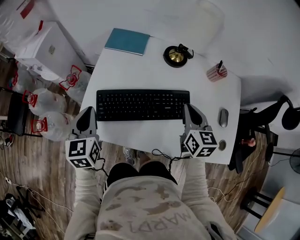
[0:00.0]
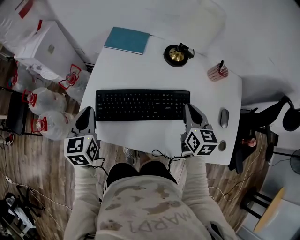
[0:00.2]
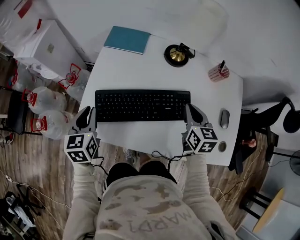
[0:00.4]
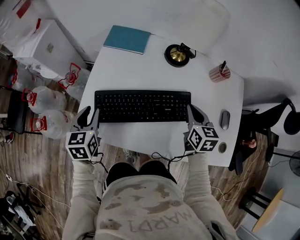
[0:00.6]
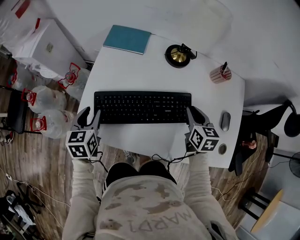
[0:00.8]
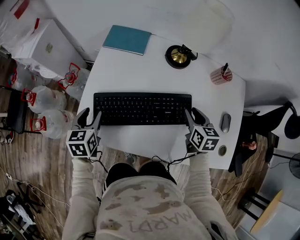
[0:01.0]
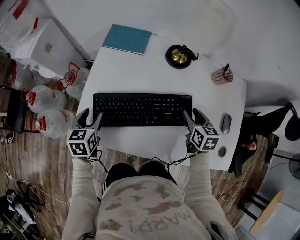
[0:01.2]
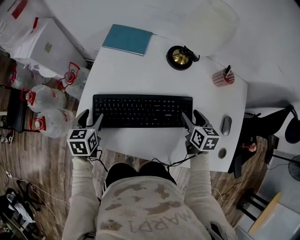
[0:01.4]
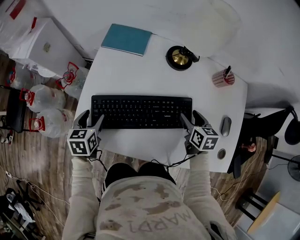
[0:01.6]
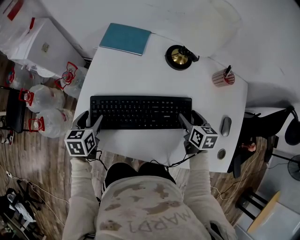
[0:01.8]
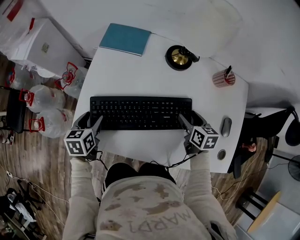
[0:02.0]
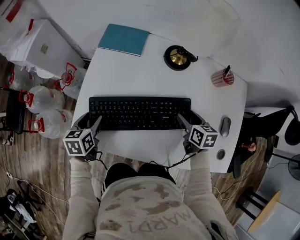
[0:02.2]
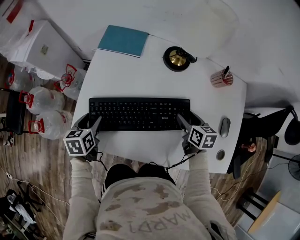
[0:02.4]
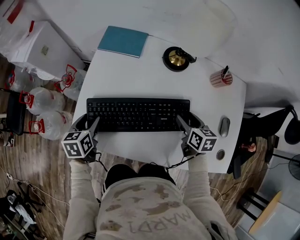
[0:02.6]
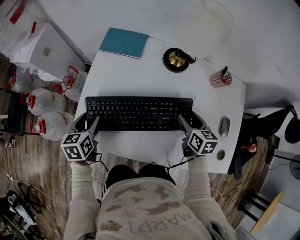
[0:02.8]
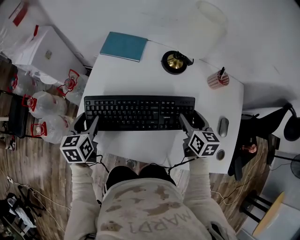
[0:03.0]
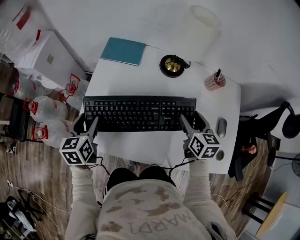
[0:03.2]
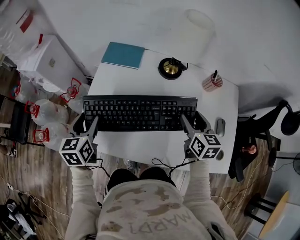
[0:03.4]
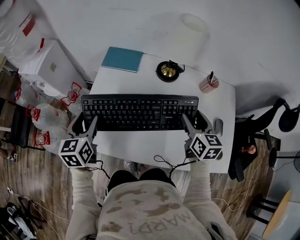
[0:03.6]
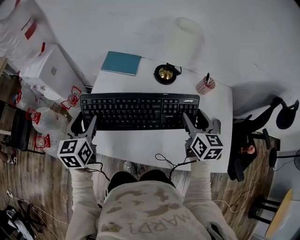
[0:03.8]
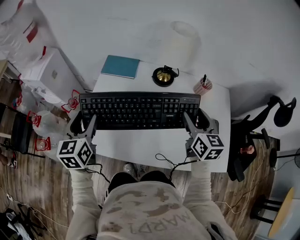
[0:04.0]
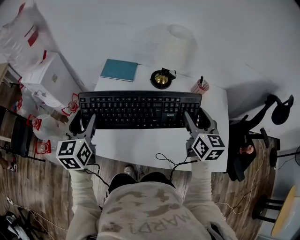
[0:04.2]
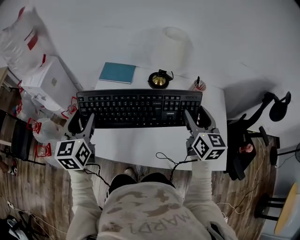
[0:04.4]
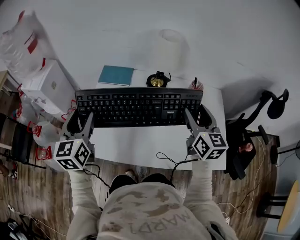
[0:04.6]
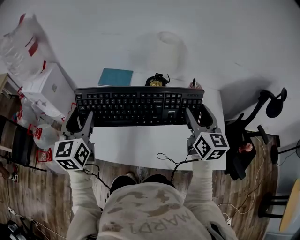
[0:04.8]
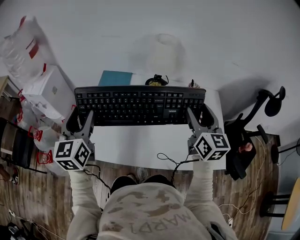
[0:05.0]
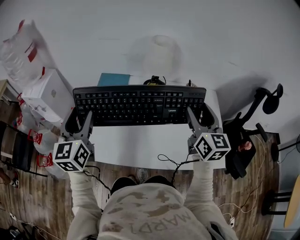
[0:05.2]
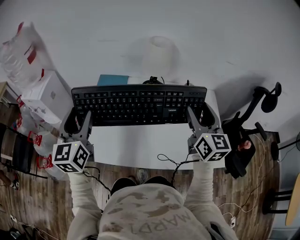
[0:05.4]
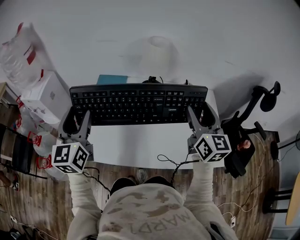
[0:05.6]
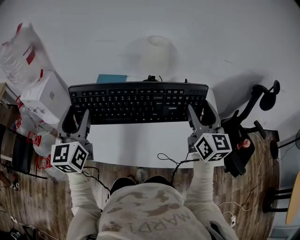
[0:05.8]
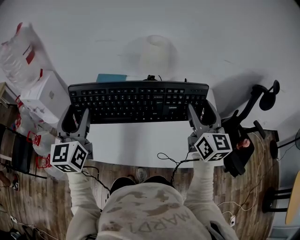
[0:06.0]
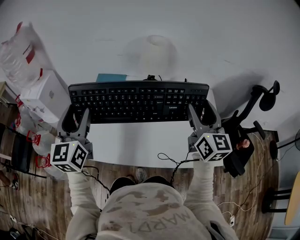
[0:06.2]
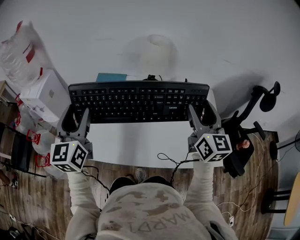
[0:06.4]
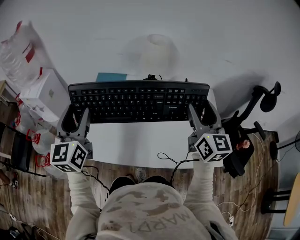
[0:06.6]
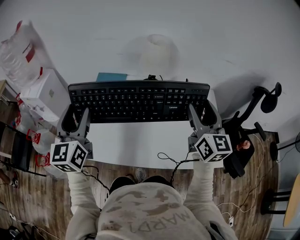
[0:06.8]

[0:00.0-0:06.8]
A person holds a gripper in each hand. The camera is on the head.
0:00.0 to 0:01.4: The left gripper travels downward by about 15 cm, swivels approximately 20 degrees, and opens. The right gripper heads downward and to the right, covering roughly 15 cm, turns by about 20 degrees, and opens its fingers.
0:01.4 to 0:02.8: The grippers make only small movements.
0:02.8 to 0:04.0: The two grippers go some 20 cm upward. The left gripper changes its angle by roughly 20 degrees. The right gripper rotates roughly 20 degrees.
0:04.0 to 0:05.4: The right gripper shifts roughly 15 cm upward and backward; the left gripper moves upward, some 15 cm.
0:05.4 to 0:06.8: The grippers stay close to where they were, moving slightly.

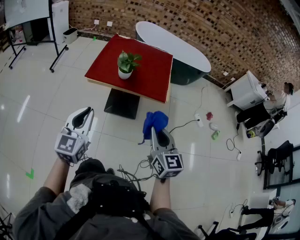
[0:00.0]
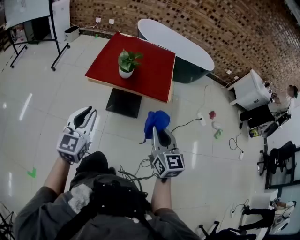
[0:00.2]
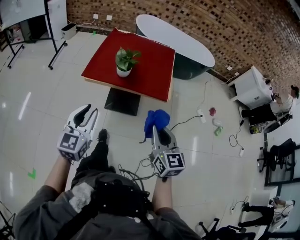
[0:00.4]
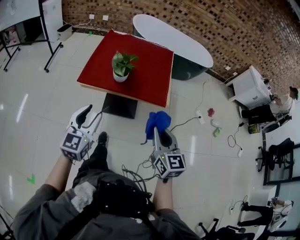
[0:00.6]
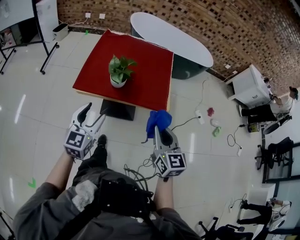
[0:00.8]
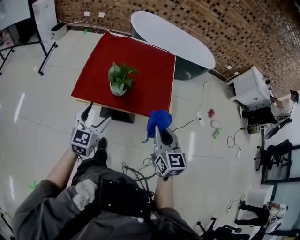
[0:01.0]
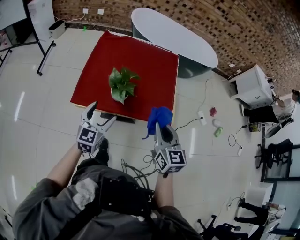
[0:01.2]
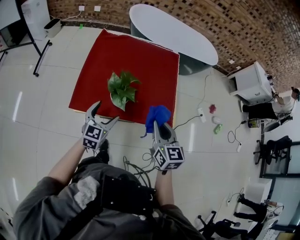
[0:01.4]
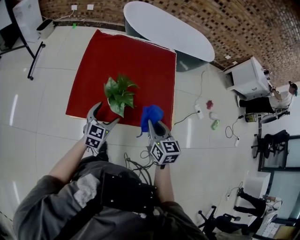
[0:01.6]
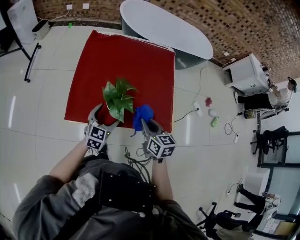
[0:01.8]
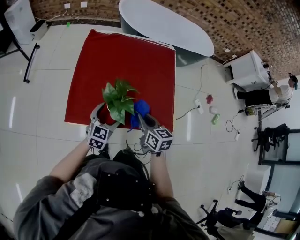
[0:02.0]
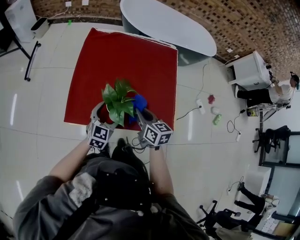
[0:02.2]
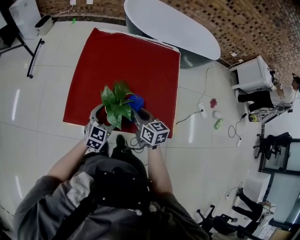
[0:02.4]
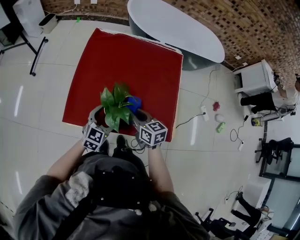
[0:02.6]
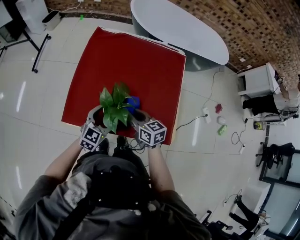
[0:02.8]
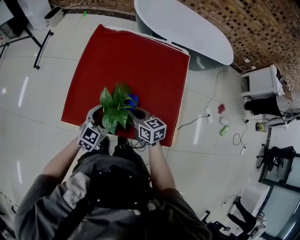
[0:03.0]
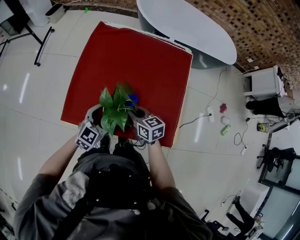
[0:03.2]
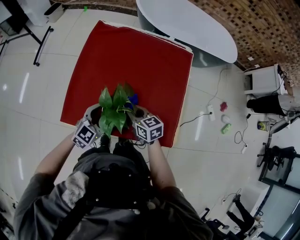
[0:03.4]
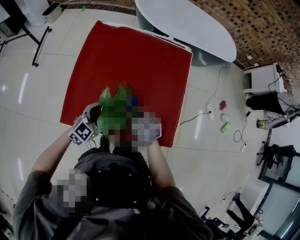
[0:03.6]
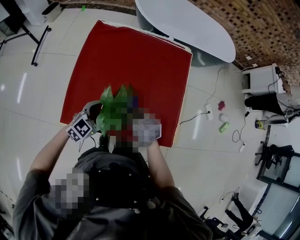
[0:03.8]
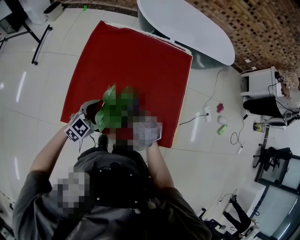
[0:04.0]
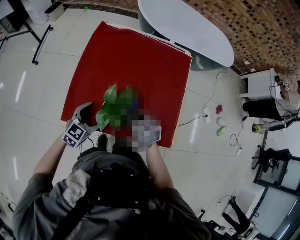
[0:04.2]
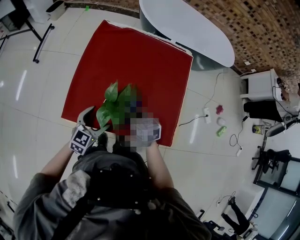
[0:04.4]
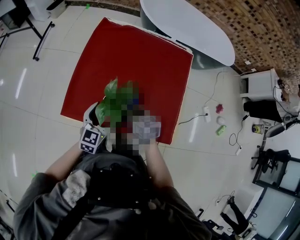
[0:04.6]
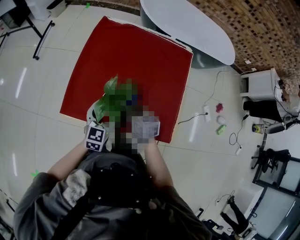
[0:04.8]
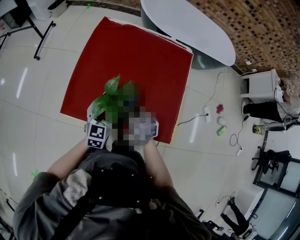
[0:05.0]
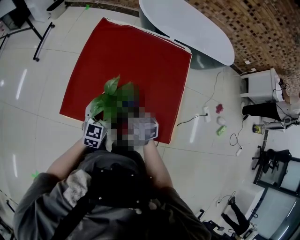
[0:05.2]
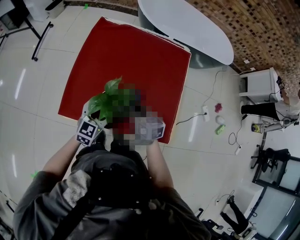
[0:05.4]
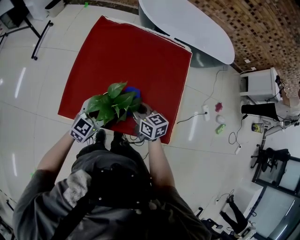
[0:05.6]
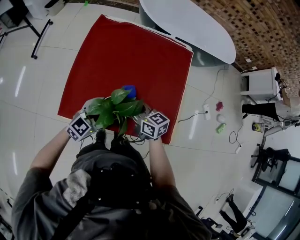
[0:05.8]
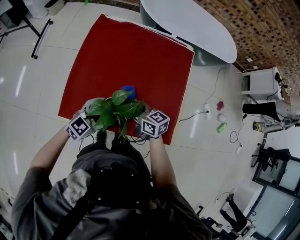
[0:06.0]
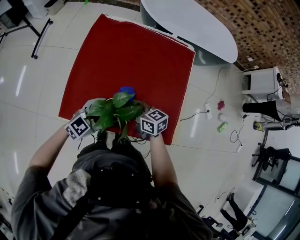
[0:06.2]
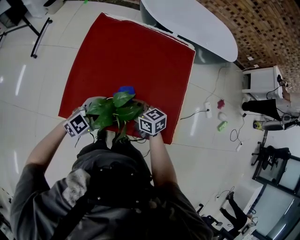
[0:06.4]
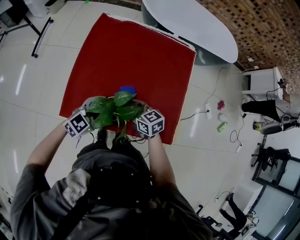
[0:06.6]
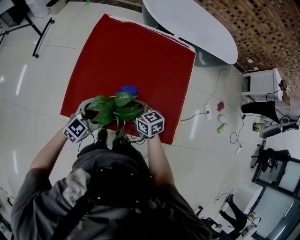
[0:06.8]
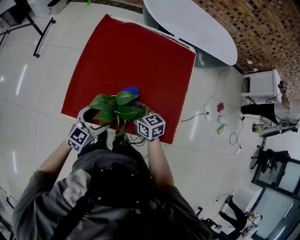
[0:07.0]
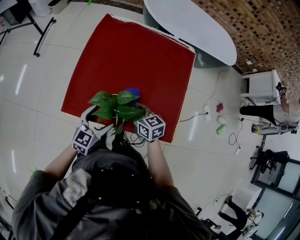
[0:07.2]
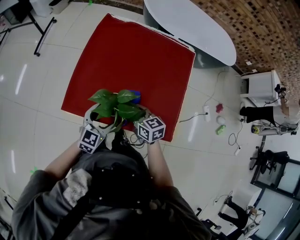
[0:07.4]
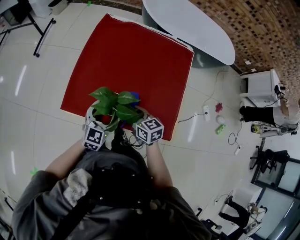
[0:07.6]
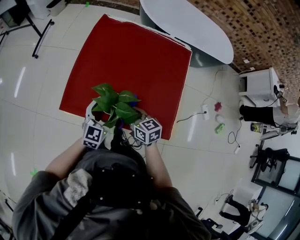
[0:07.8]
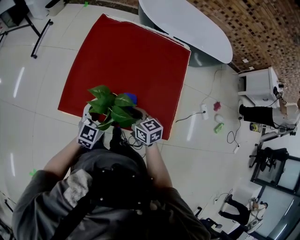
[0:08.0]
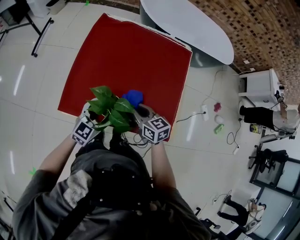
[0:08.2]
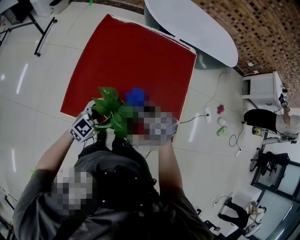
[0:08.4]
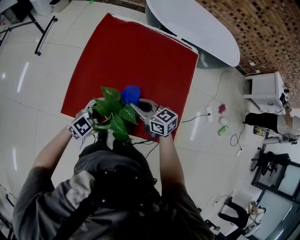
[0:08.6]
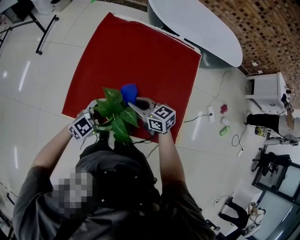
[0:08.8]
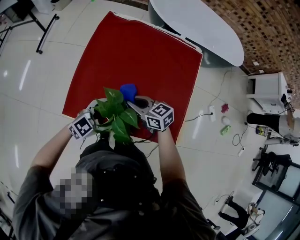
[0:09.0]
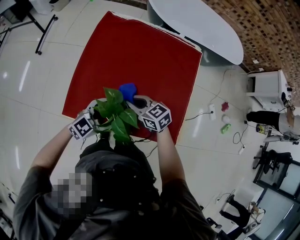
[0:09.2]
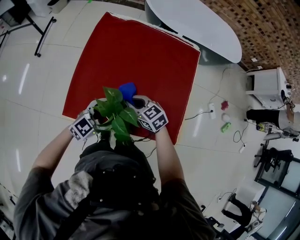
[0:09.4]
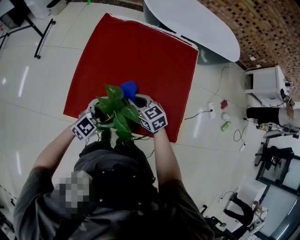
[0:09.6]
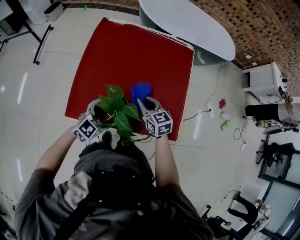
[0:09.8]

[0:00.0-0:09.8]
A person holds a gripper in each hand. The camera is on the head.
0:00.0 to 0:01.4: The pair of grippers is taken forward, approximately 50 cm. The left gripper opens its fingers.
0:01.4 to 0:02.8: The right gripper heads forward, downward and to the left, covering approximately 25 cm, and swivels about 30 degrees, while the left gripper travels forward and downward by about 15 cm.
0:02.8 to 0:04.2: The left gripper is displaced to the left by roughly 5 cm, while the right gripper moves roughly 5 cm.
0:04.2 to 0:05.6: The left gripper shifts by approximately 5 cm.
0:05.6 to 0:07.0: The left gripper moves some 5 cm.
0:07.0 to 0:08.4: The right gripper ends up roughly 5 cm from where it was.

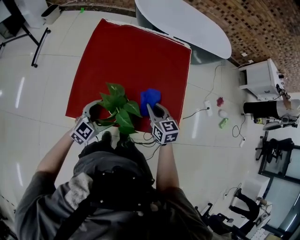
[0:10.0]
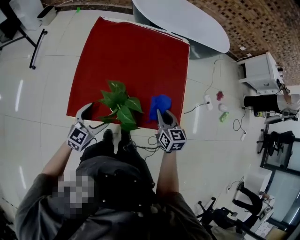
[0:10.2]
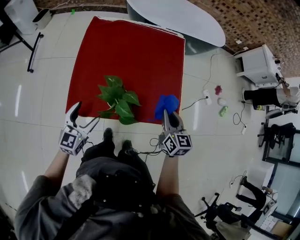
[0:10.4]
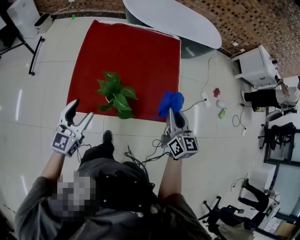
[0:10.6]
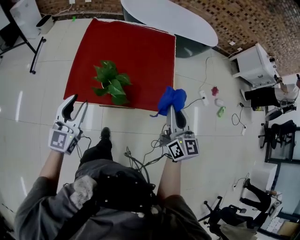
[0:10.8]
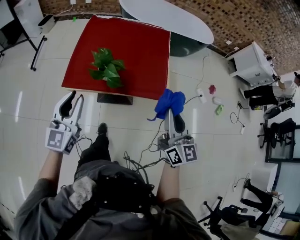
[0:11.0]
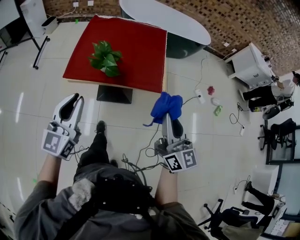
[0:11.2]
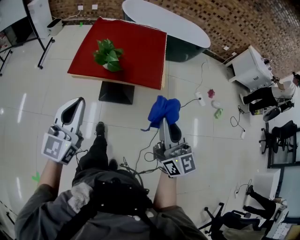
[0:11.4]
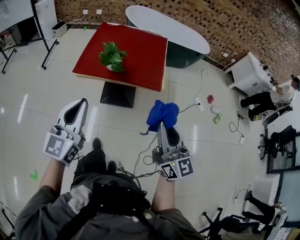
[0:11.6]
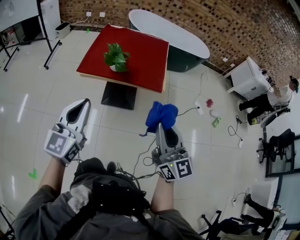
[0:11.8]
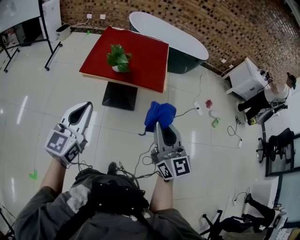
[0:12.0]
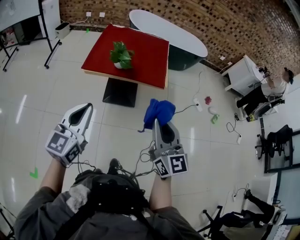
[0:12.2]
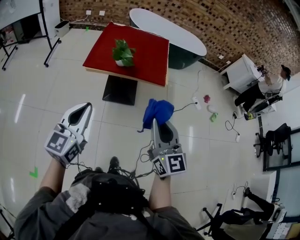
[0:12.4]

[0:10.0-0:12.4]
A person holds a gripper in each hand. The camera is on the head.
0:10.0 to 0:11.2: The right gripper goes some 50 cm backward, upward and to the right, and angles its fingers upward, by some 40 degrees, while the left gripper is displaced backward and upward by some 40 cm, turns by about 40 degrees, and closes its fingers.
0:11.2 to 0:12.4: The right gripper goes approximately 25 cm backward and to the left. The left gripper moves backward, approximately 25 cm.

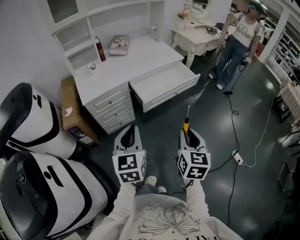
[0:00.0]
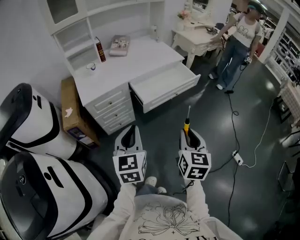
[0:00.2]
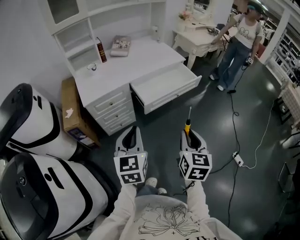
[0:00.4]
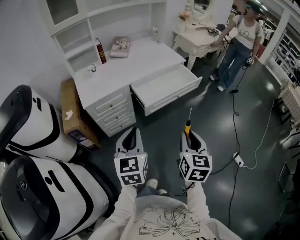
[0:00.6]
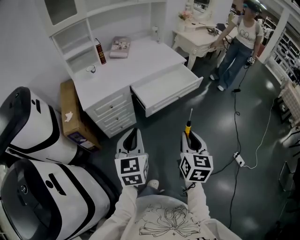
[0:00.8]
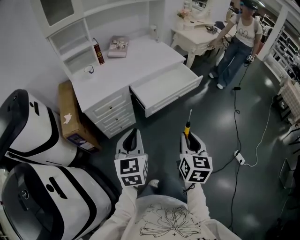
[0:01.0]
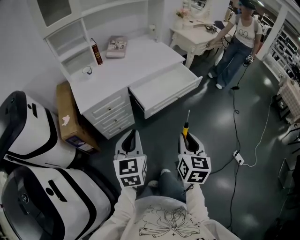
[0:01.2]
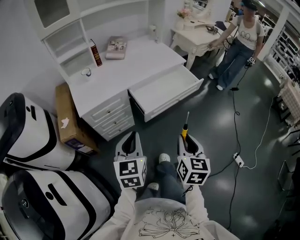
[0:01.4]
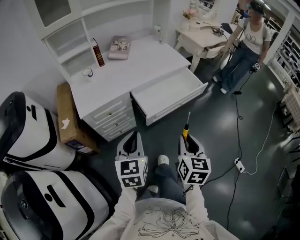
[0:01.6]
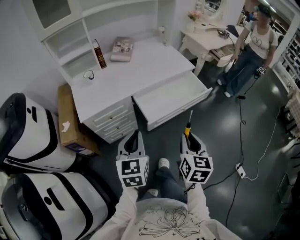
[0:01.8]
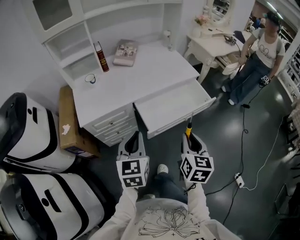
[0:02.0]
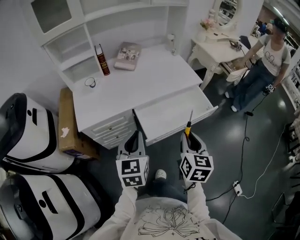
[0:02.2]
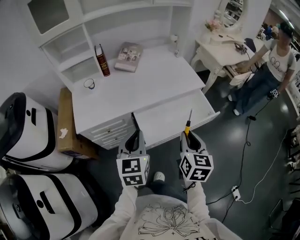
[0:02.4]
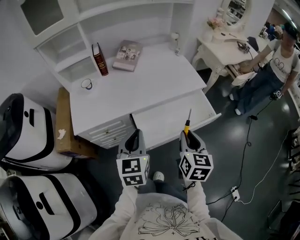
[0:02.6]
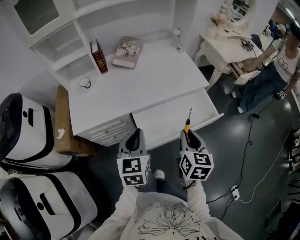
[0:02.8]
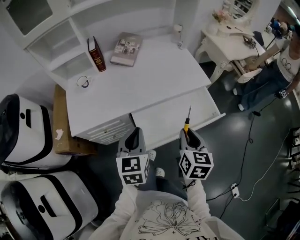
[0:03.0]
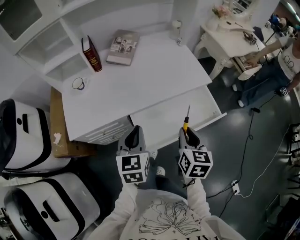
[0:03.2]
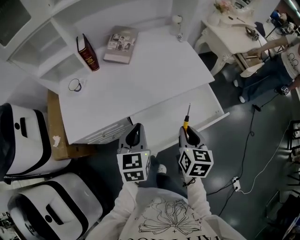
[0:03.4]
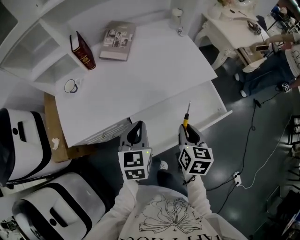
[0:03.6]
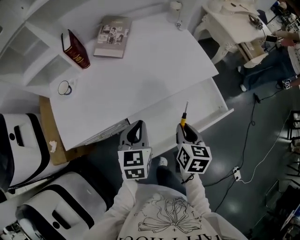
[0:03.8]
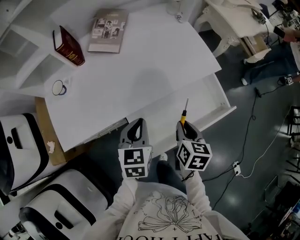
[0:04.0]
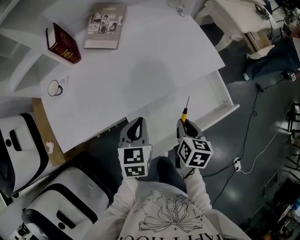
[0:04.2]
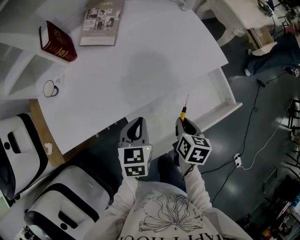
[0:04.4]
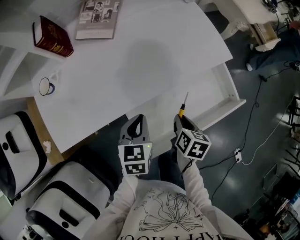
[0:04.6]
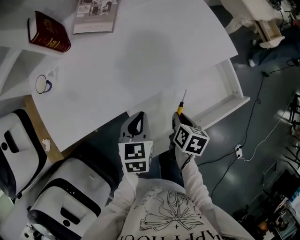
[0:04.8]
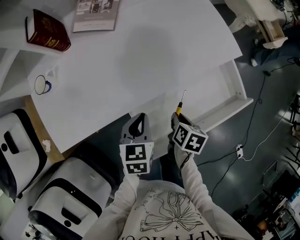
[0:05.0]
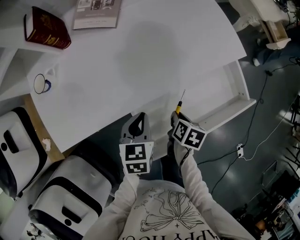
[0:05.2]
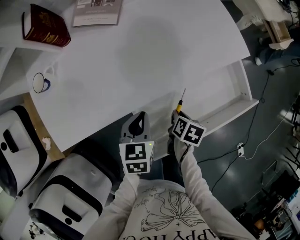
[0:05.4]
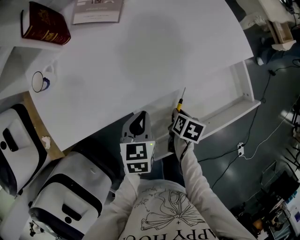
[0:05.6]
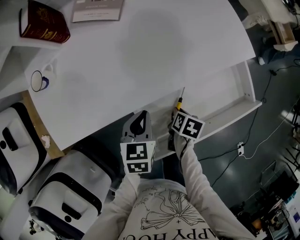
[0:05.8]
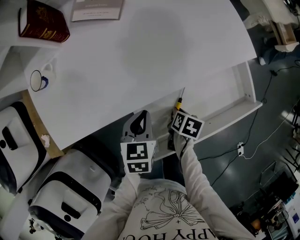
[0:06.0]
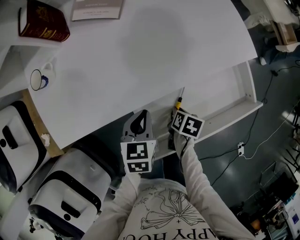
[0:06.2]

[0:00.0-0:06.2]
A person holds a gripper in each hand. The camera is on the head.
0:00.0 to 0:01.6: The two grippers go roughly 10 cm forward.
0:01.6 to 0:03.2: The grippers both shift forward by approximately 35 cm.
0:03.2 to 0:04.6: The two grippers go roughly 20 cm downward and forward. The left gripper turns by approximately 20 degrees; the right gripper rotates some 30 degrees.
0:04.6 to 0:06.2: The right gripper shifts roughly 15 cm downward, and swivels approximately 20 degrees. The left gripper heads downward, covering some 5 cm.
